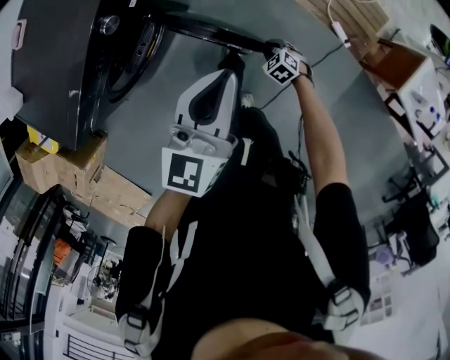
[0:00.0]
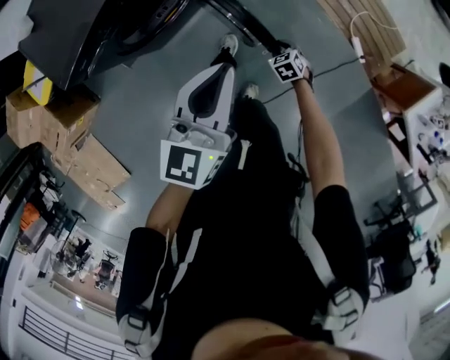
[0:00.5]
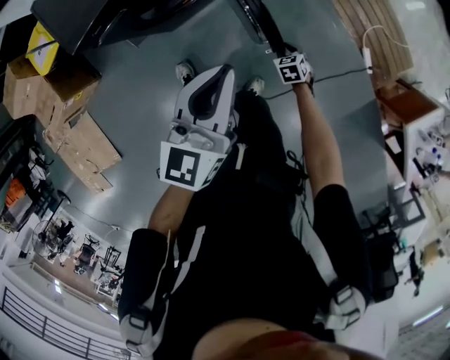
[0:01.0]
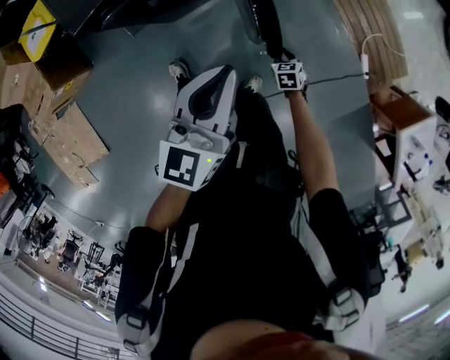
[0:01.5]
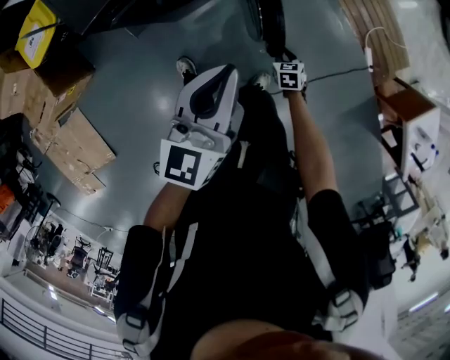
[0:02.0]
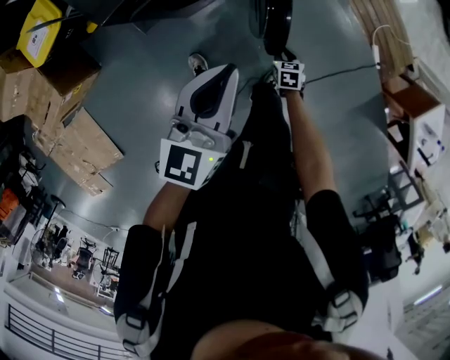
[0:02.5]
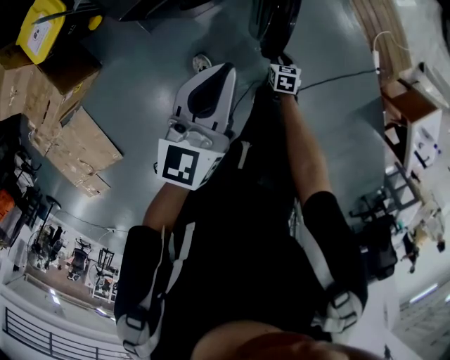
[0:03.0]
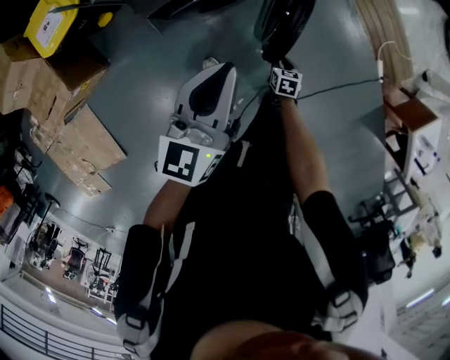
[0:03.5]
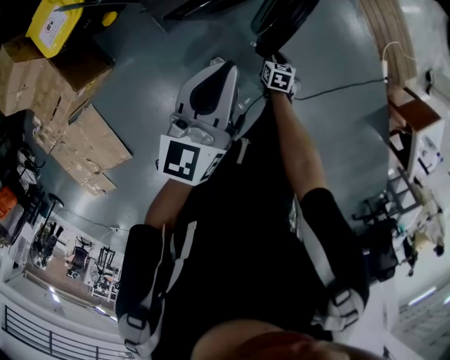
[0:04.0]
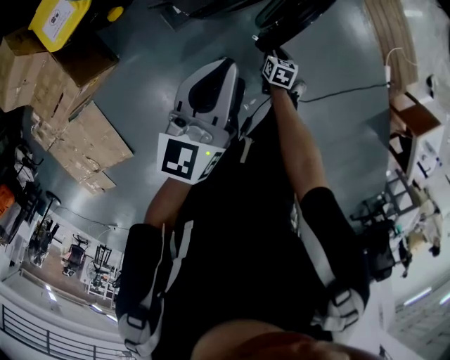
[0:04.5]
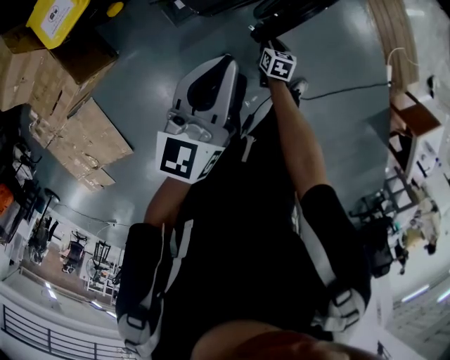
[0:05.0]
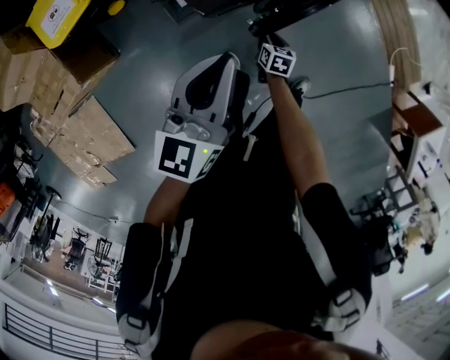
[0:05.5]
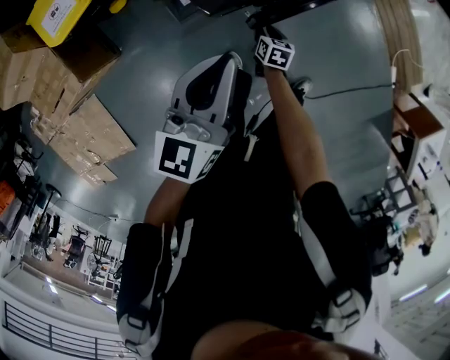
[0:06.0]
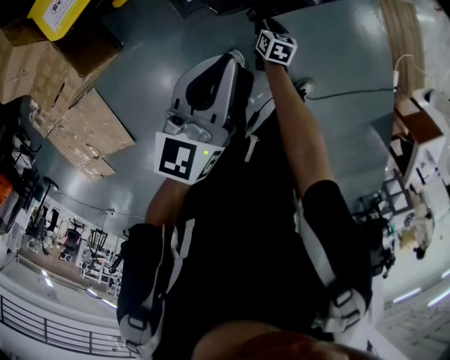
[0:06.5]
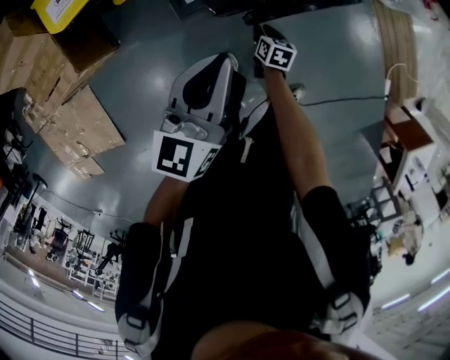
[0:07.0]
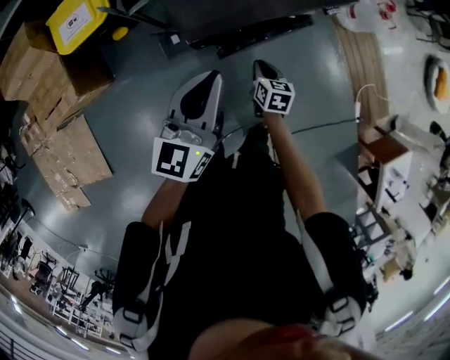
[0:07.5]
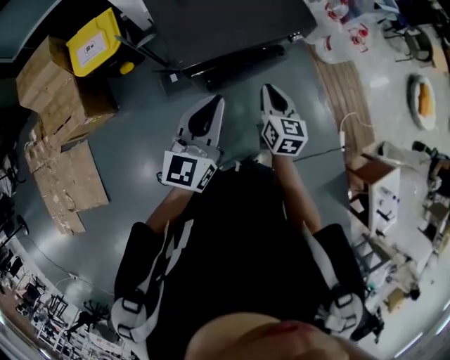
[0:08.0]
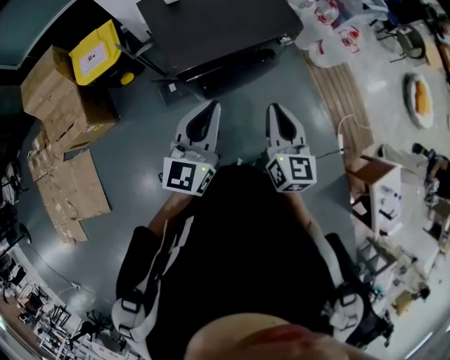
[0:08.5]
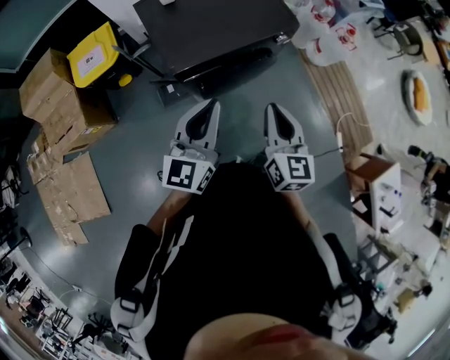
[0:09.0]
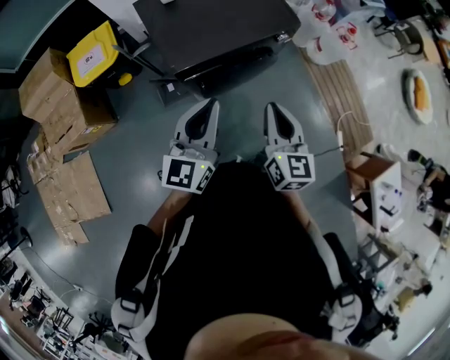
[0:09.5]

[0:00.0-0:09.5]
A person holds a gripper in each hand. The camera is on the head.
0.0 to 2.0 s: Both grippers move to the left and backward, some 25 cm. The right gripper changes its angle by some 20 degrees.
2.0 to 4.0 s: Both grippers travel together to the left, roughly 25 cm.
4.0 to 5.5 s: The left gripper heads to the left, covering about 10 cm. The right gripper moves to the left and forward, roughly 15 cm.
5.5 to 7.5 s: The left gripper shifts approximately 10 cm upward, while the right gripper goes about 20 cm upward, and closes its fingers.
7.5 to 9.5 s: The right gripper is displaced upward by roughly 35 cm, and angles its fingers upward, by about 30 degrees. Meanwhile the left gripper goes about 15 cm upward, to the right and backward.

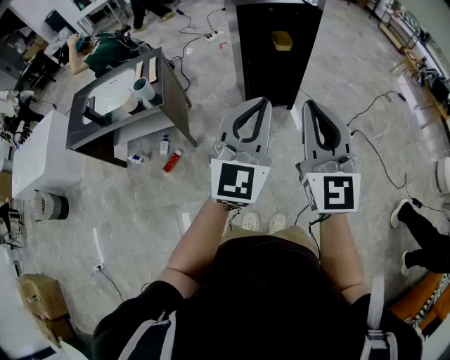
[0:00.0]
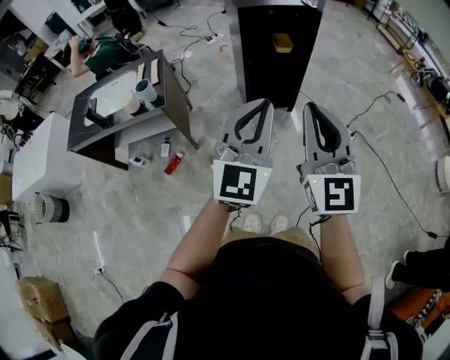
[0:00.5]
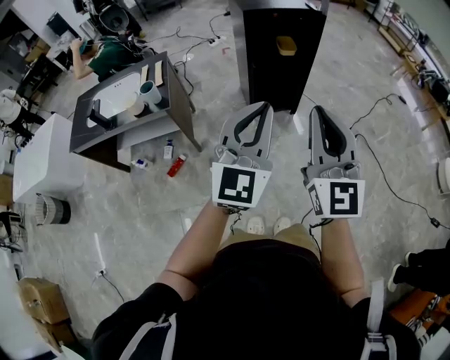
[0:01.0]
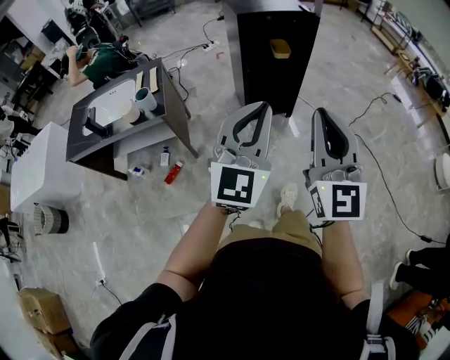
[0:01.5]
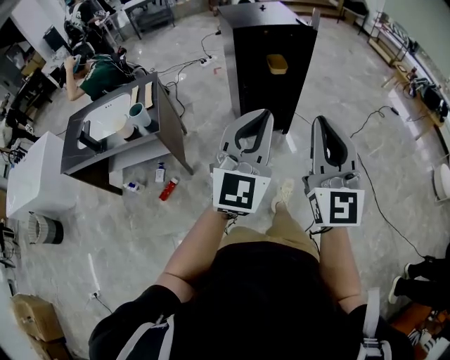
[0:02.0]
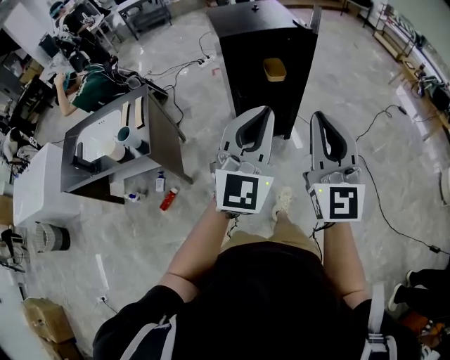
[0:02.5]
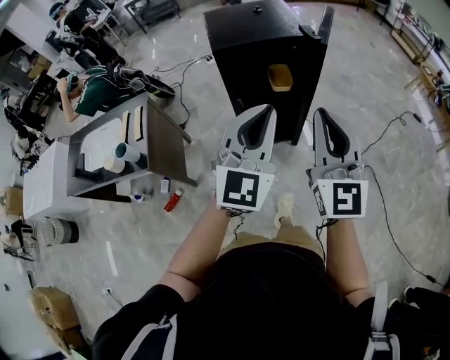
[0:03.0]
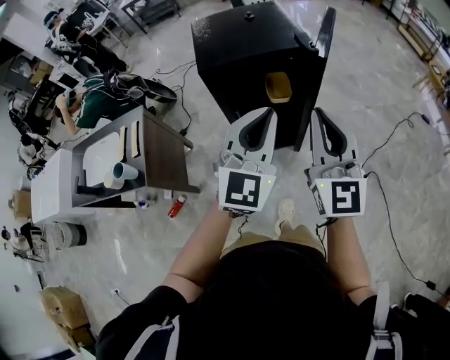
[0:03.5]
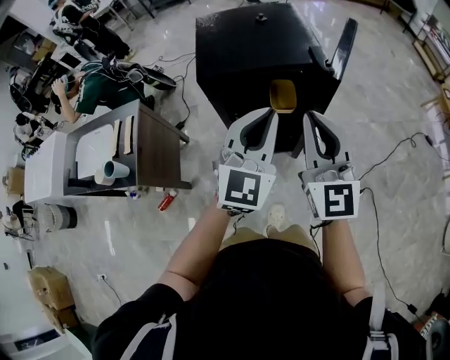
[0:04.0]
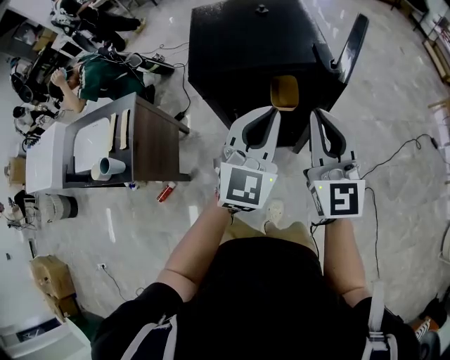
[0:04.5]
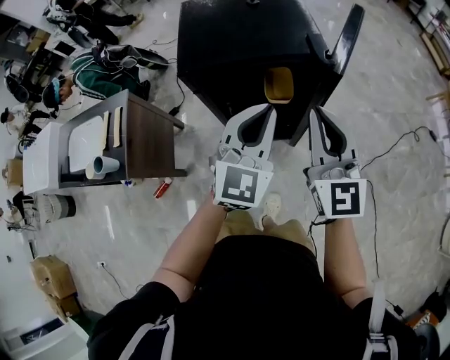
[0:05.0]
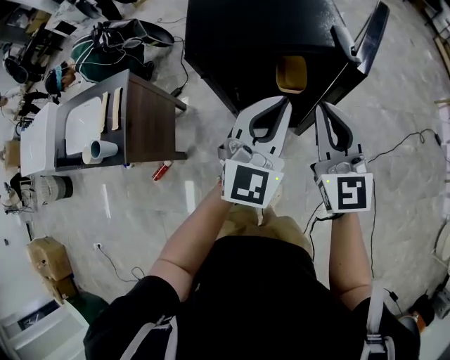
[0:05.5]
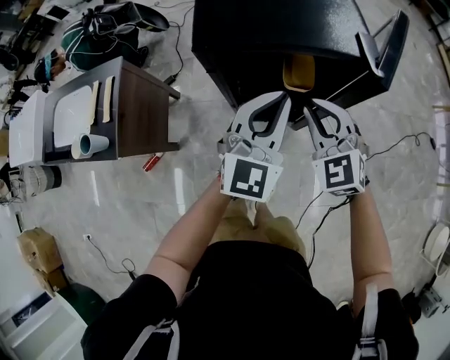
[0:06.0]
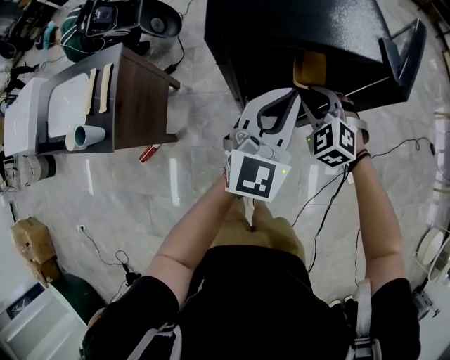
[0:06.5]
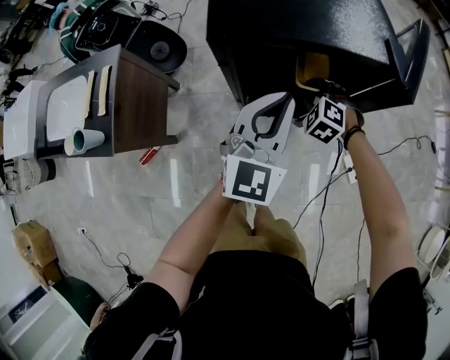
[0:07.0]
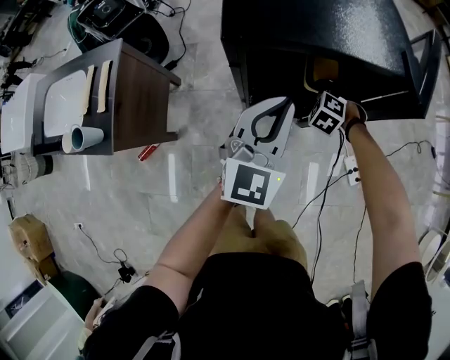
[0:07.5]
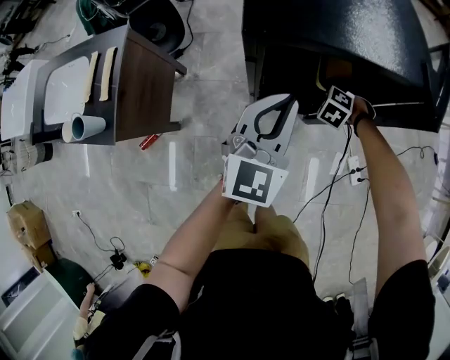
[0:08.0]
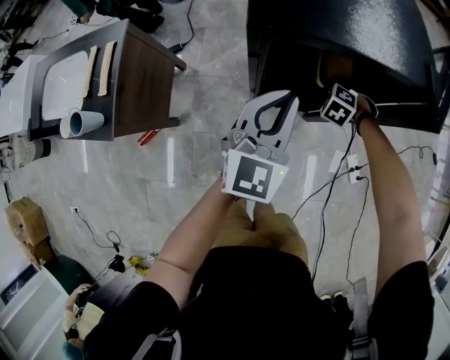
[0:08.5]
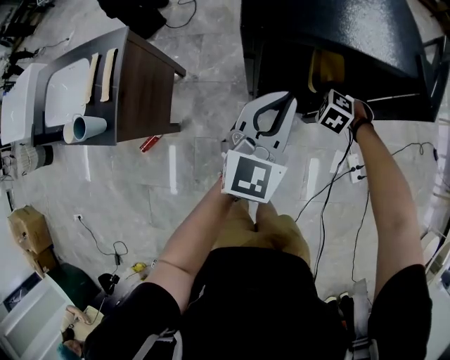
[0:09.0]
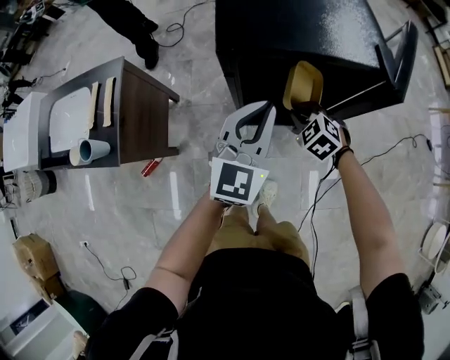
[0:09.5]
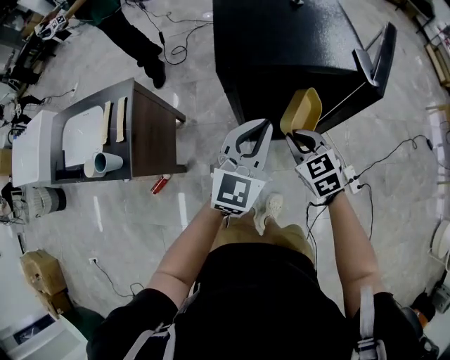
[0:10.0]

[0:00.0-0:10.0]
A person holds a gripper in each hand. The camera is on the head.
0.0 to 2.0 s: The grippers move only a little.
2.0 to 4.0 s: The pair of grippers is taken forward, some 60 cm.
4.0 to 6.0 s: The right gripper shifts some 20 cm downward and forward, and points its fingers roughly 40 degrees further downward. The left gripper shifts some 15 cm downward and forward.
6.0 to 8.0 s: The left gripper moves to the left and downward, some 10 cm. Meanwhile the right gripper heads downward and forward, covering some 30 cm, and angles its fingers downward, by some 40 degrees.
8.0 to 10.0 s: The left gripper moves upward and backward, roughly 10 cm; the right gripper is displaced upward and backward by roughly 30 cm, and tilts its fingers some 30 degrees upward.

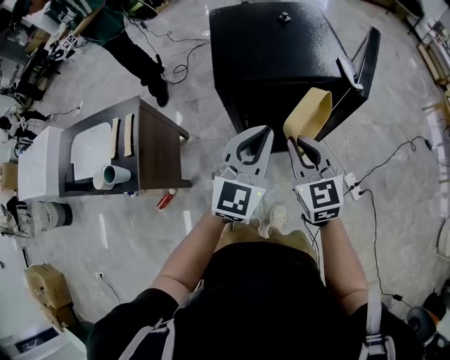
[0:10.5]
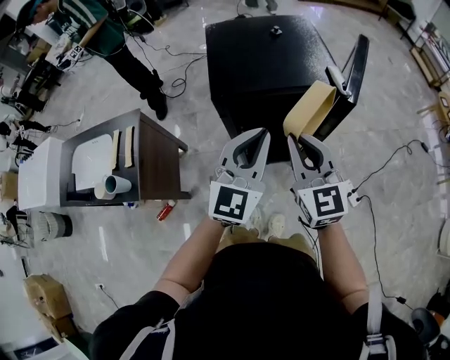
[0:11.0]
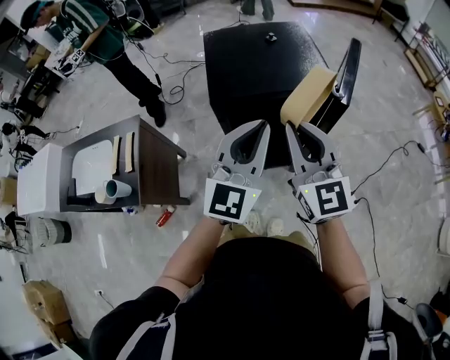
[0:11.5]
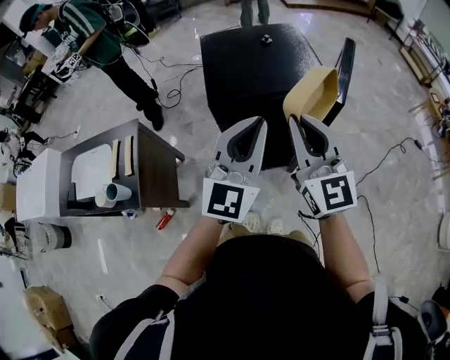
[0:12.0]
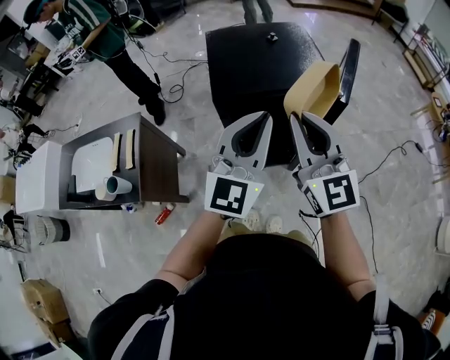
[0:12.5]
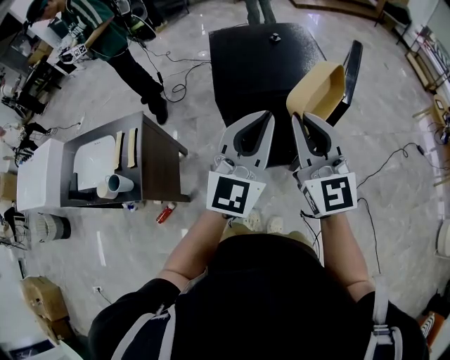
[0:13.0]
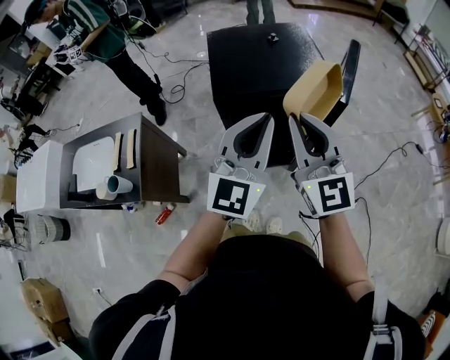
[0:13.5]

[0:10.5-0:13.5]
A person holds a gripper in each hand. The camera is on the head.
10.5 to 12.0 s: Both grippers travel together upward, about 15 cm. The right gripper rotates some 30 degrees.
12.0 to 13.5 s: There are only small adjustments of the grippers.

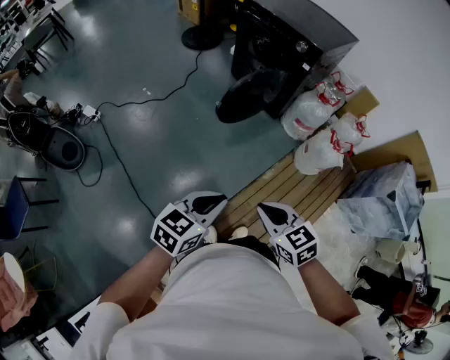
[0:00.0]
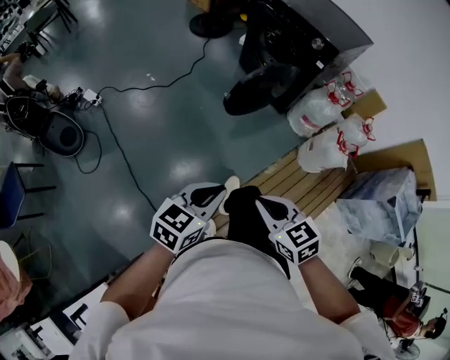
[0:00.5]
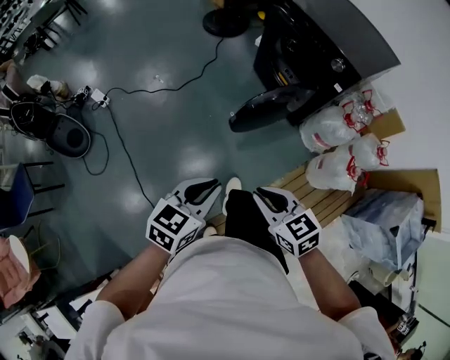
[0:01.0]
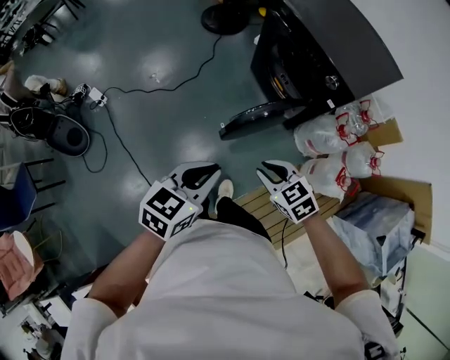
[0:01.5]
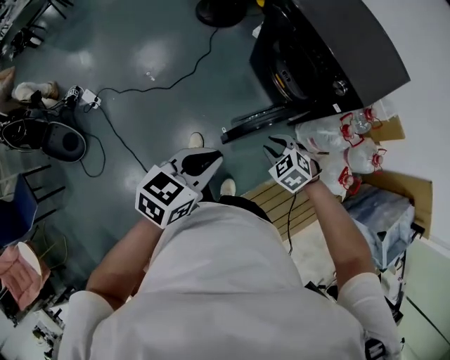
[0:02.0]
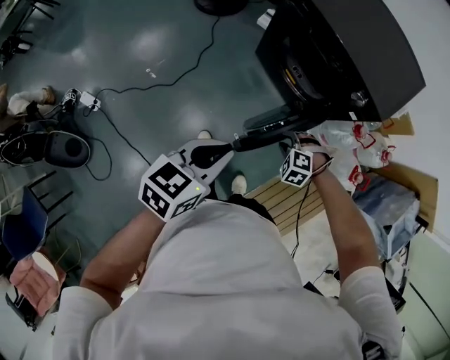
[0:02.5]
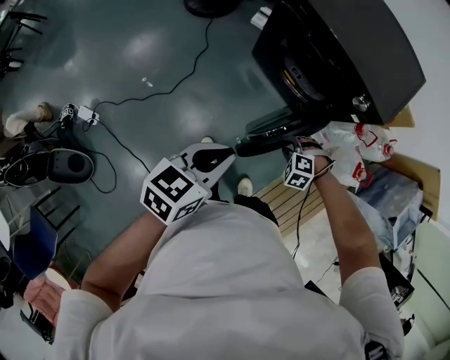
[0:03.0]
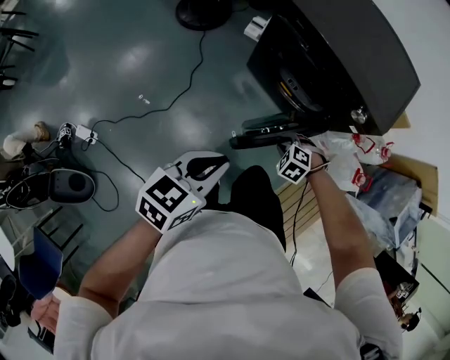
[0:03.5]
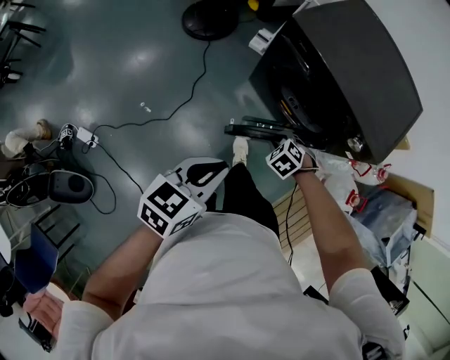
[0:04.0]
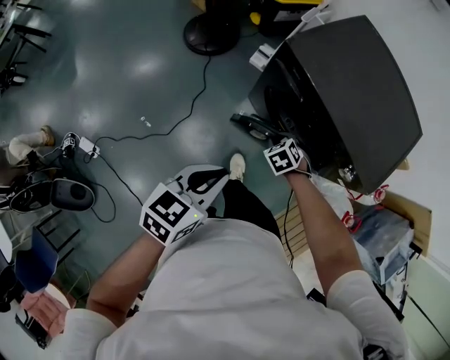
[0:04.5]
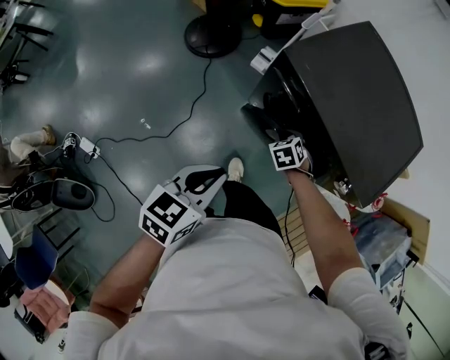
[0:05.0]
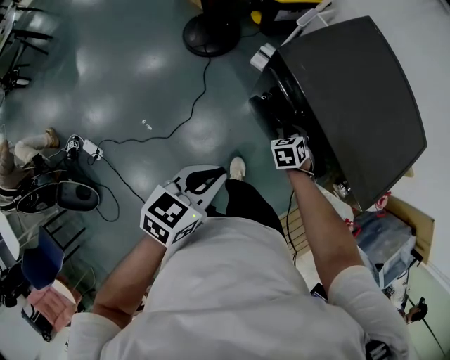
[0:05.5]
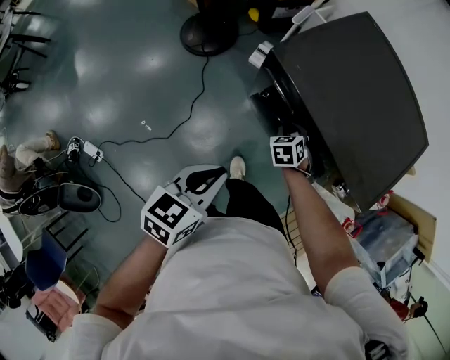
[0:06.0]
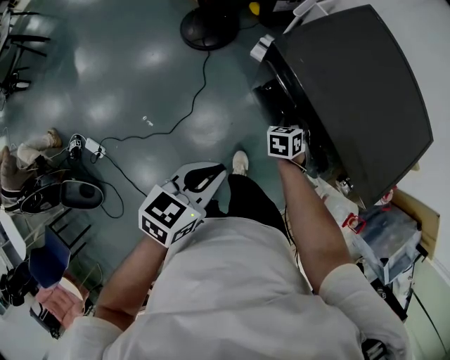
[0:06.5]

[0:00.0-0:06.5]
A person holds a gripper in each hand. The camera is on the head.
0.0 to 2.0 s: Both grippers are carried forward, some 40 cm. The right gripper swivels roughly 40 degrees, and opens up.
2.0 to 4.5 s: The right gripper ends up approximately 35 cm from where it was, and turns by some 30 degrees; the left gripper ends up roughly 30 cm from where it was.
4.5 to 6.5 s: The left gripper is displaced forward by about 5 cm; the right gripper goes approximately 15 cm forward, and rotates some 30 degrees.
